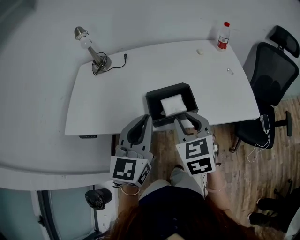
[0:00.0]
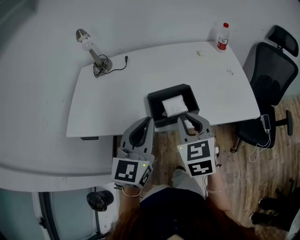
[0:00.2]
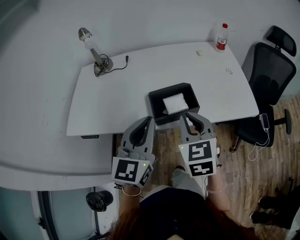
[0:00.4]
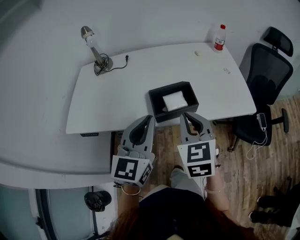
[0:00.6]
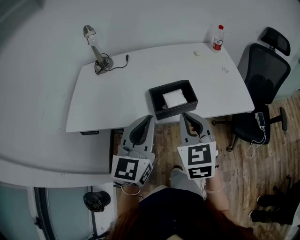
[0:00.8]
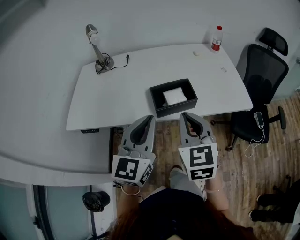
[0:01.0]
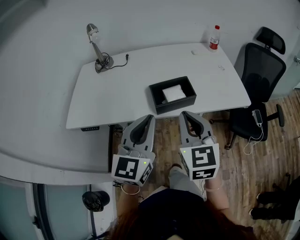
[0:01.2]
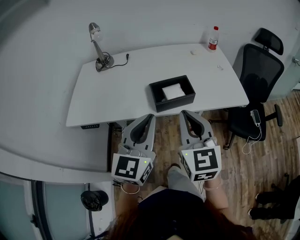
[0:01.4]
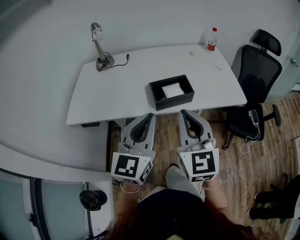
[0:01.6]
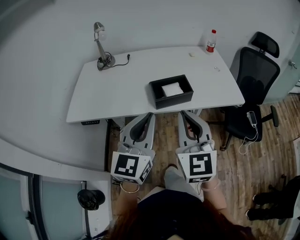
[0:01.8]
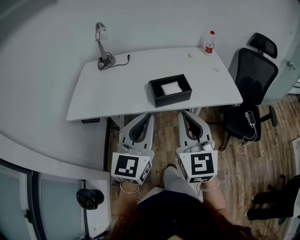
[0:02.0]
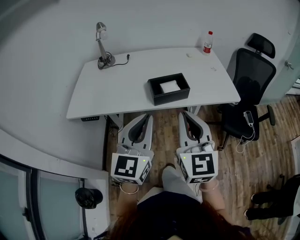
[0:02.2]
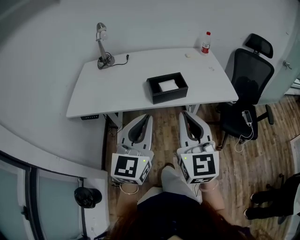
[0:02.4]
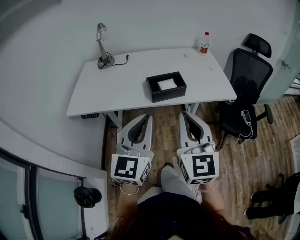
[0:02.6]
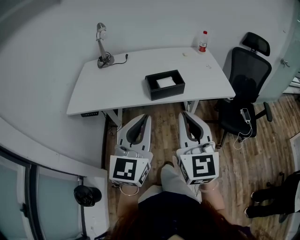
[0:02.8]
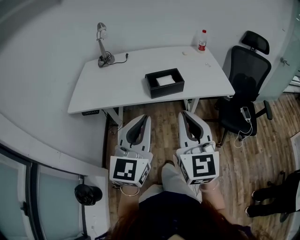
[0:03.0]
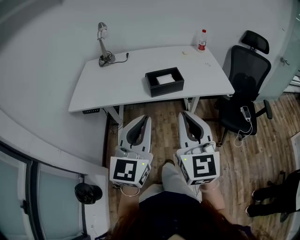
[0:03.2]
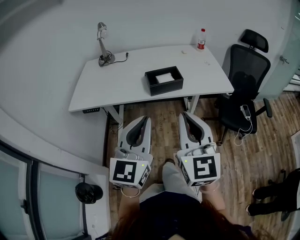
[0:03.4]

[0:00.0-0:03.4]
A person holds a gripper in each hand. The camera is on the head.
0:00.0 to 0:01.6: The right gripper goes roughly 15 cm backward and upward, and swivels some 30 degrees. The left gripper shifts about 10 cm backward.
0:01.6 to 0:03.4: Both grippers move backward, some 15 cm.

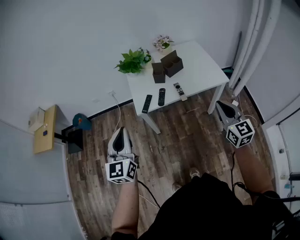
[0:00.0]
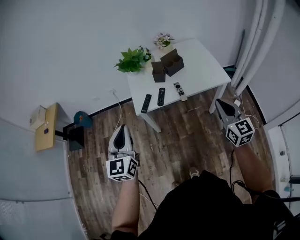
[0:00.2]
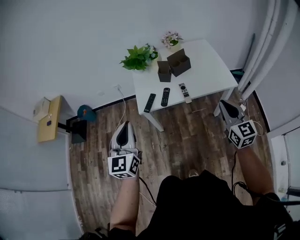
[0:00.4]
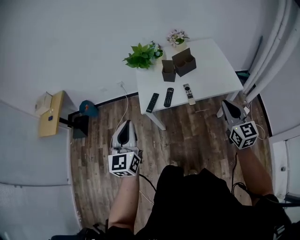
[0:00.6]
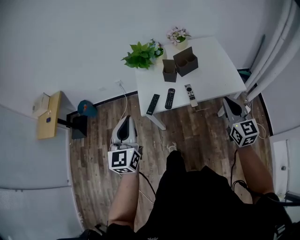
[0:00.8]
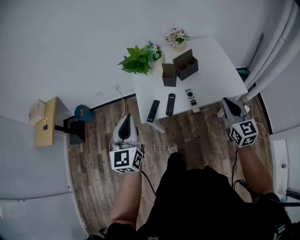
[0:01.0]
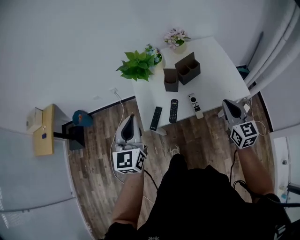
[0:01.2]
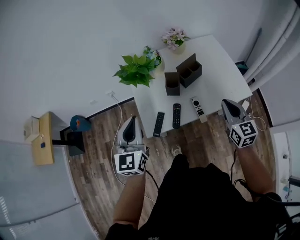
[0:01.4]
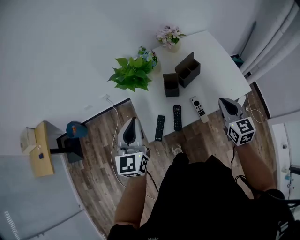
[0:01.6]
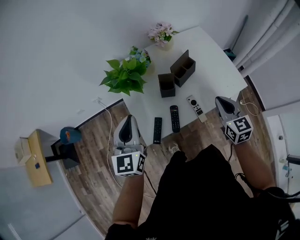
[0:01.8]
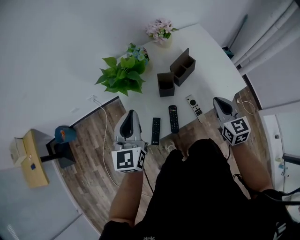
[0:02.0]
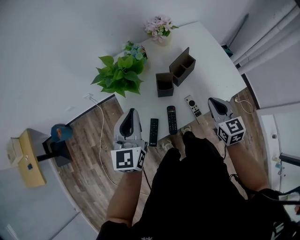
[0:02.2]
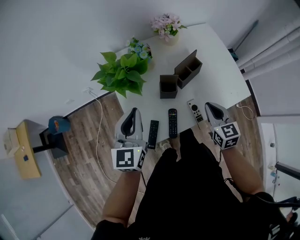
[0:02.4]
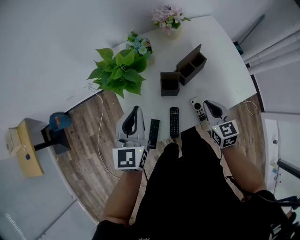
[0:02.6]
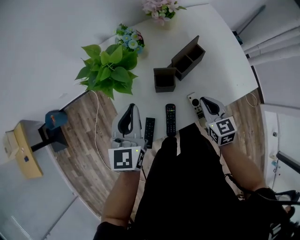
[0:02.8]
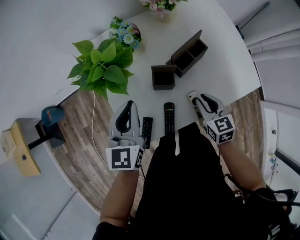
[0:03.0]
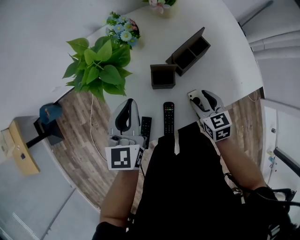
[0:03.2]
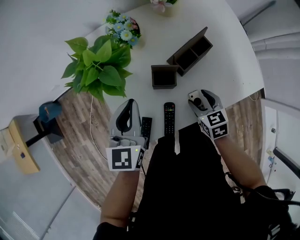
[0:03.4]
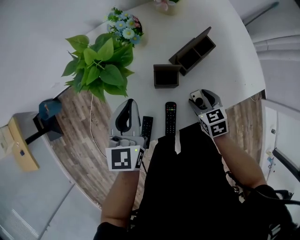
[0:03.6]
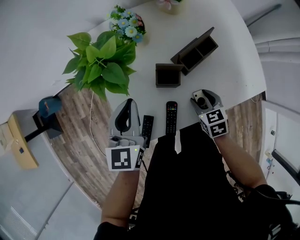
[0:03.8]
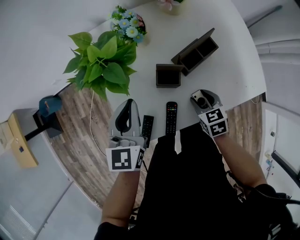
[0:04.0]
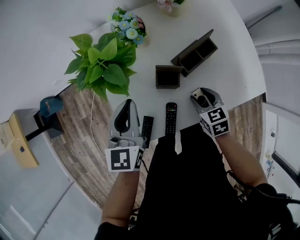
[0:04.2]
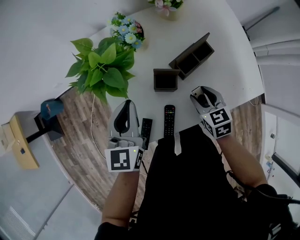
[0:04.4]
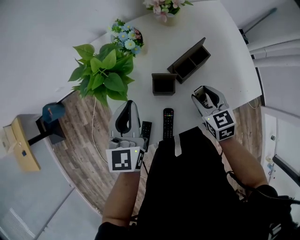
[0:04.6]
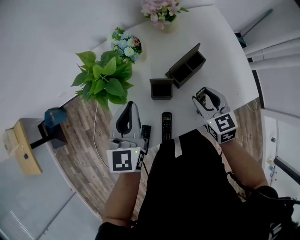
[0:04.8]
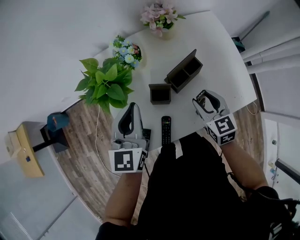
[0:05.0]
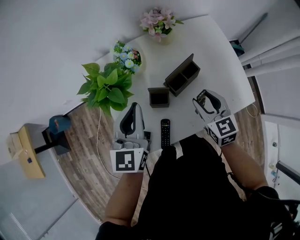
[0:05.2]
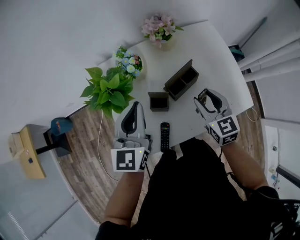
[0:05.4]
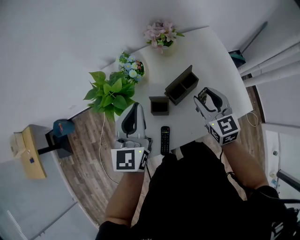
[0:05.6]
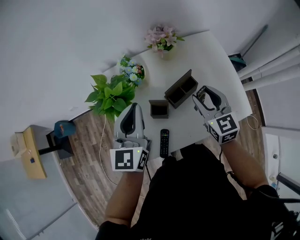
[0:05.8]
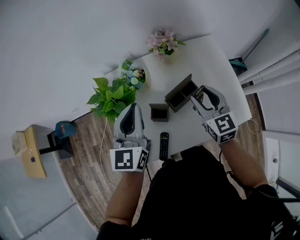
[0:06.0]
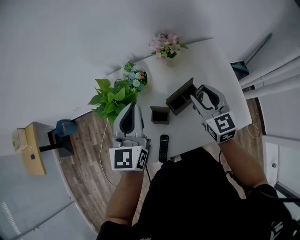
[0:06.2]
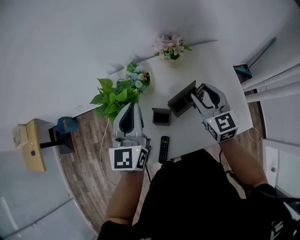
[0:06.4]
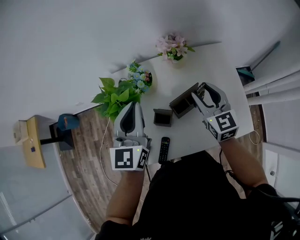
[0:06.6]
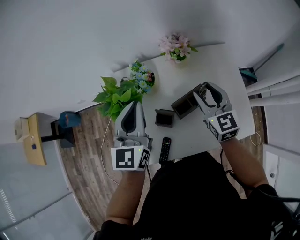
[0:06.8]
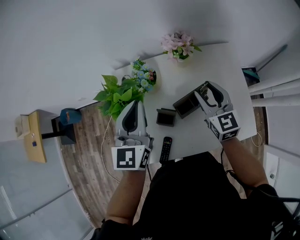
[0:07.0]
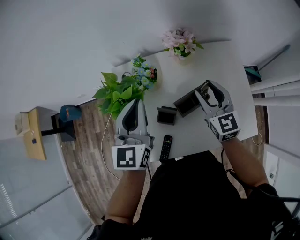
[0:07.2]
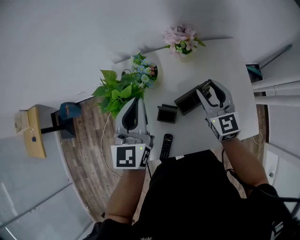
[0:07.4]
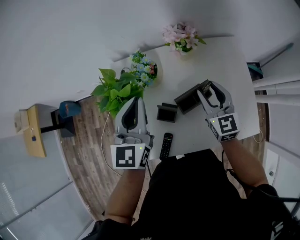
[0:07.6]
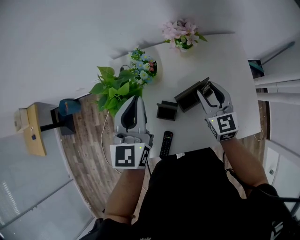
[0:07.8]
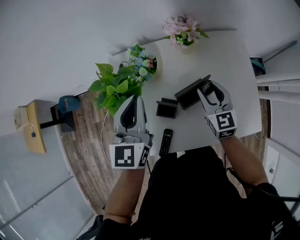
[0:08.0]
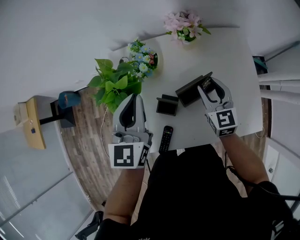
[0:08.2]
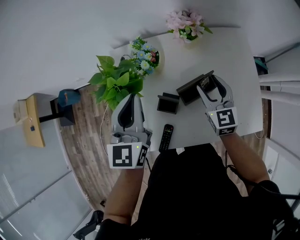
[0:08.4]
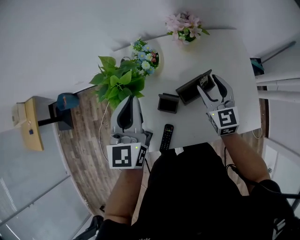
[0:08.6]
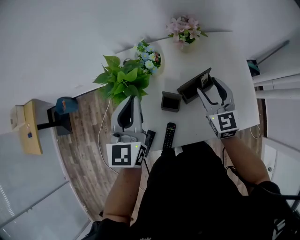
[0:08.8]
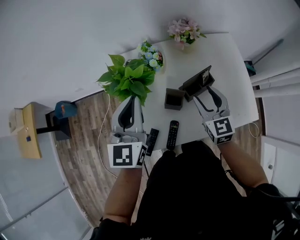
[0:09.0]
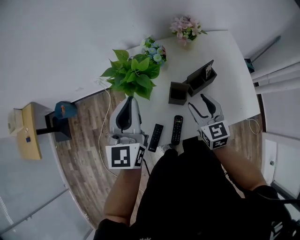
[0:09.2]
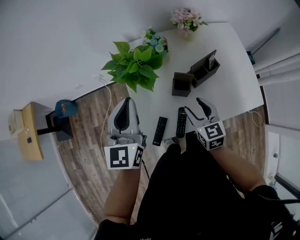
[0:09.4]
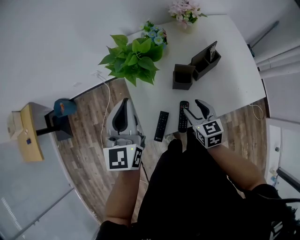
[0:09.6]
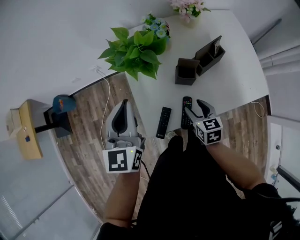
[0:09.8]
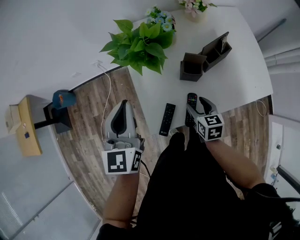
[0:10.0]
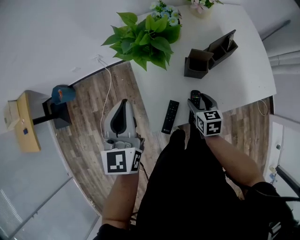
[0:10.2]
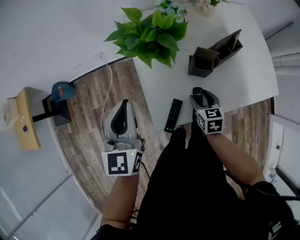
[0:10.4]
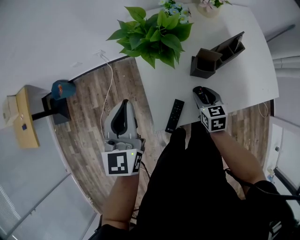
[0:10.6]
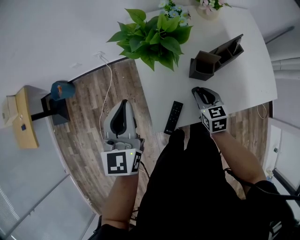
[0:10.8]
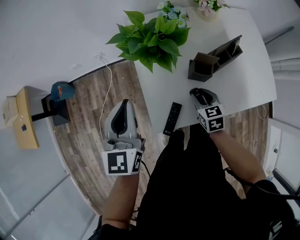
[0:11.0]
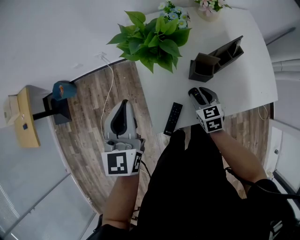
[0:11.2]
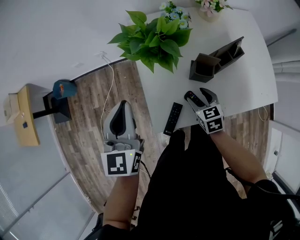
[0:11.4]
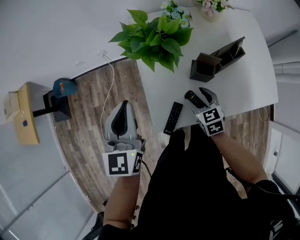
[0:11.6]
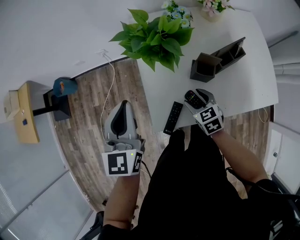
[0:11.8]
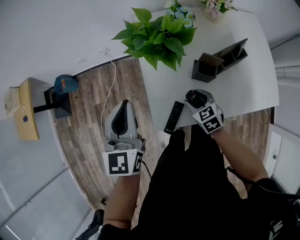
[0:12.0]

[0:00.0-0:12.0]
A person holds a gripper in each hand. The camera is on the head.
0:00.0 to 0:01.6: Both grippers move forward, about 30 cm.
0:01.6 to 0:03.0: The left gripper heads forward and downward, covering some 20 cm; the right gripper goes about 20 cm downward and forward, and swivels roughly 20 degrees.
0:03.0 to 0:04.4: The right gripper opens its fingers.
0:04.4 to 0:06.0: The left gripper travels upward, to the right and forward by approximately 15 cm; the right gripper goes about 20 cm upward and forward, and changes its angle by roughly 30 degrees.
0:06.0 to 0:07.6: The right gripper is displaced forward by approximately 5 cm.
0:07.6 to 0:09.0: The left gripper goes approximately 10 cm to the left and backward. Meanwhile the right gripper is displaced backward and to the left by some 10 cm.
0:09.0 to 0:10.4: The left gripper is displaced to the left, downward and backward by about 20 cm; the right gripper heads downward, to the left and backward, covering approximately 25 cm, and turns by about 30 degrees.
0:10.4 to 0:12.0: The right gripper turns by approximately 30 degrees, and closes, then reopens.

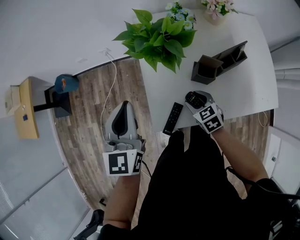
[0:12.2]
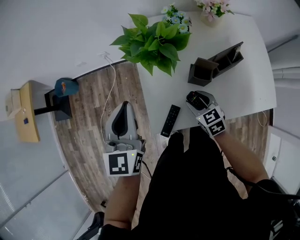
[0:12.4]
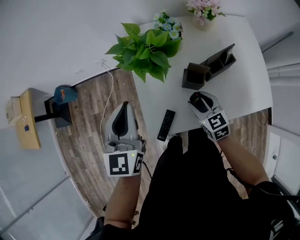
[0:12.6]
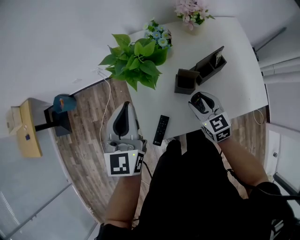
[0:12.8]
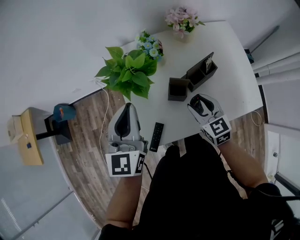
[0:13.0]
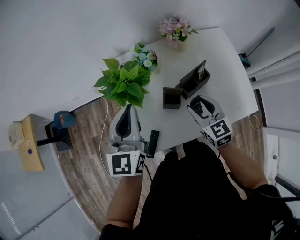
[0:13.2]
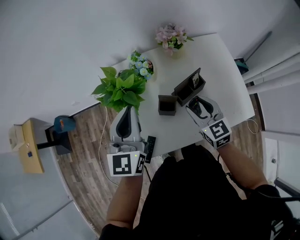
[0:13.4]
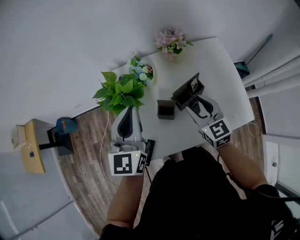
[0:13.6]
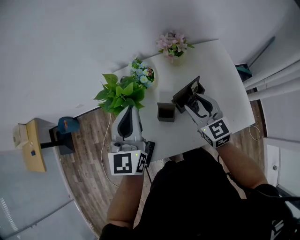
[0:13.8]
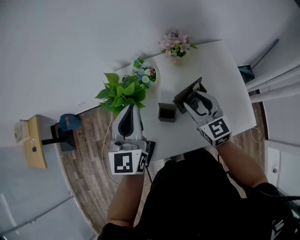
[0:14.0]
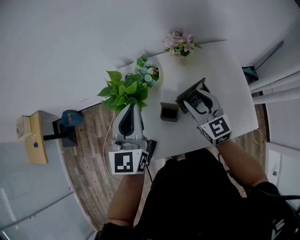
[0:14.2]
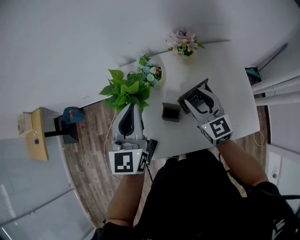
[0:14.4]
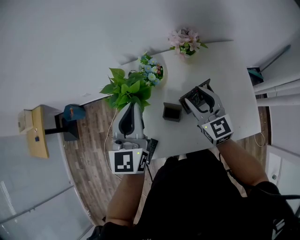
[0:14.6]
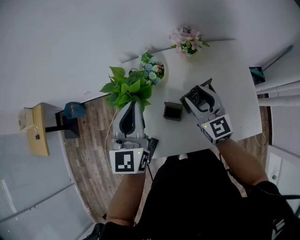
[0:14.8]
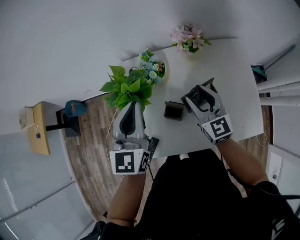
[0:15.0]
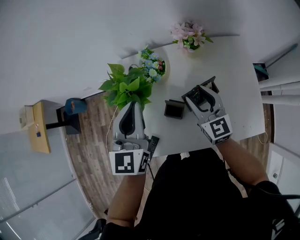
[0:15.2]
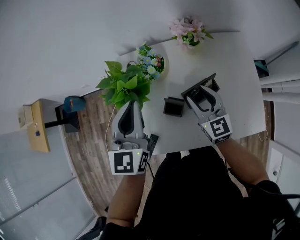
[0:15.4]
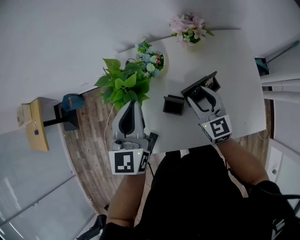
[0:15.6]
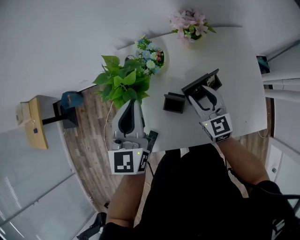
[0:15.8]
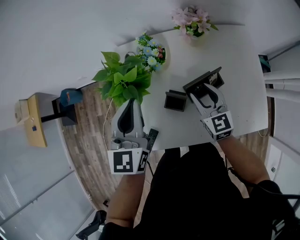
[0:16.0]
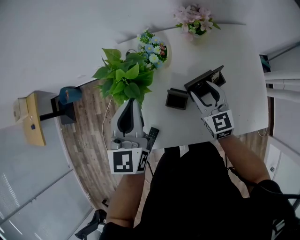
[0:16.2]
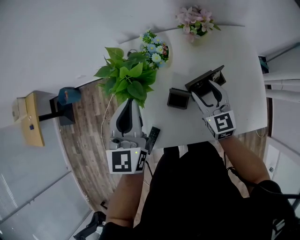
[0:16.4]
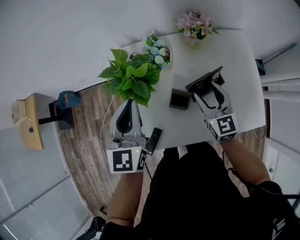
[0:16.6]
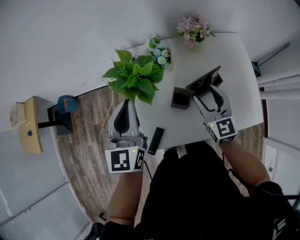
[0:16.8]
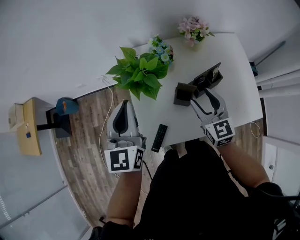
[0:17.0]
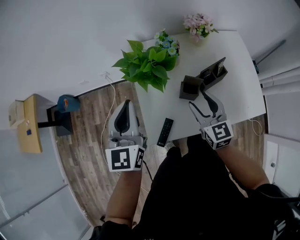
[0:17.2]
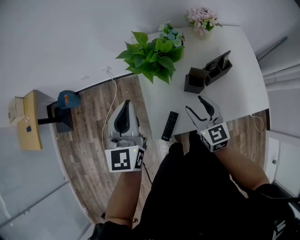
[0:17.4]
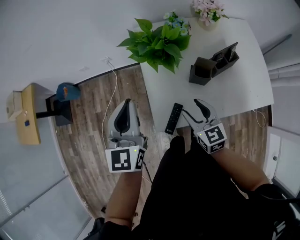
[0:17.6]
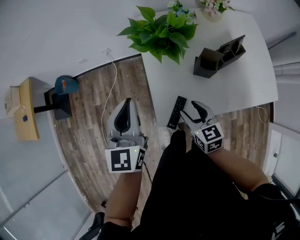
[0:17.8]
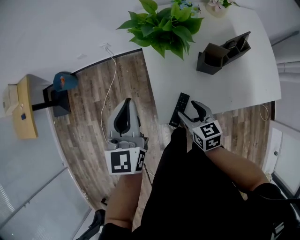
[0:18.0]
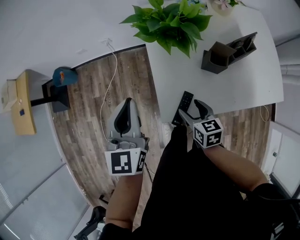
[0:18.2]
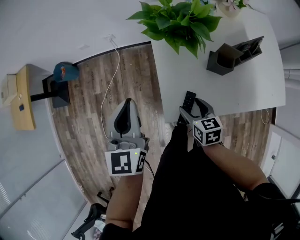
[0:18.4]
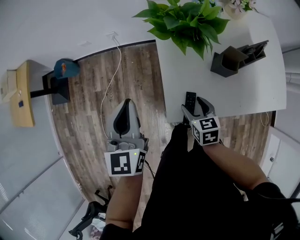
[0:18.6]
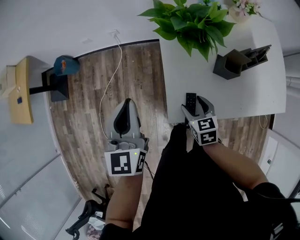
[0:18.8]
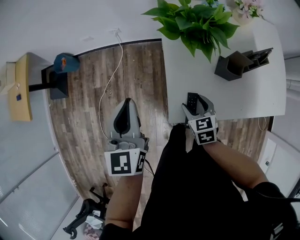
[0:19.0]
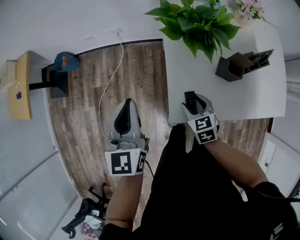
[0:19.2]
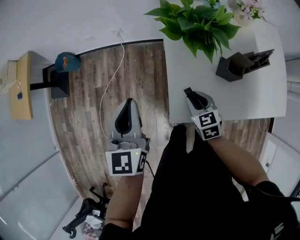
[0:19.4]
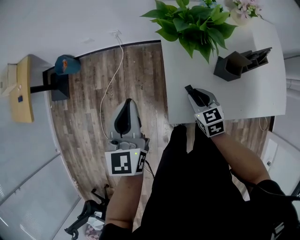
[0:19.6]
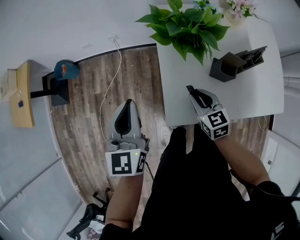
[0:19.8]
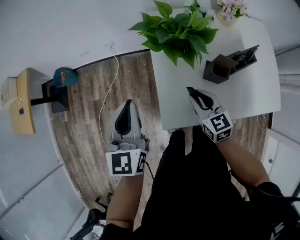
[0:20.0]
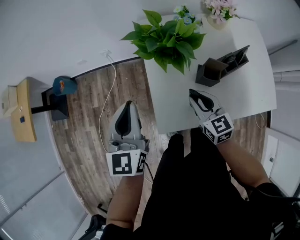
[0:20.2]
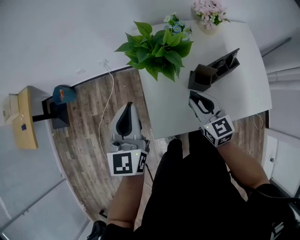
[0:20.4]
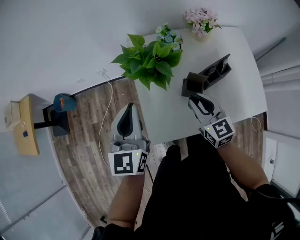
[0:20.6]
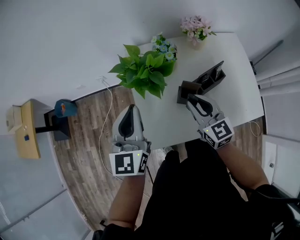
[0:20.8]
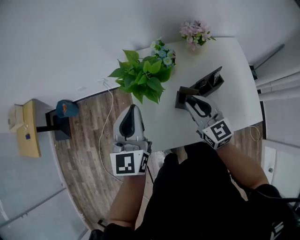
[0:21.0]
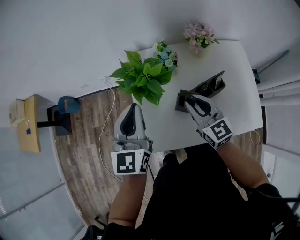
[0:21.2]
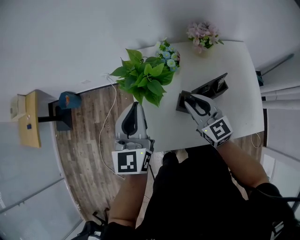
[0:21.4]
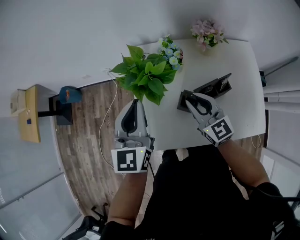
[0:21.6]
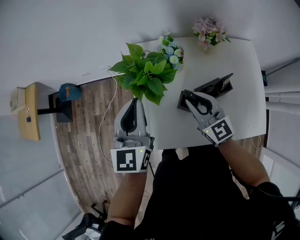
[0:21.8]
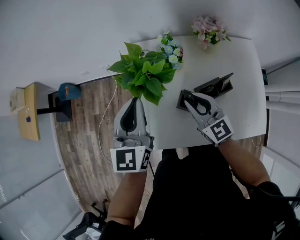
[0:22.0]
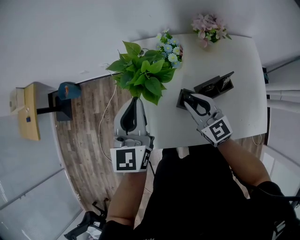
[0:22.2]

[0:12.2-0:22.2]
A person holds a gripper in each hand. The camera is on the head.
0:12.2 to 0:13.6: The left gripper shifts some 20 cm to the right and upward. The right gripper travels upward and to the right by approximately 30 cm, and rotates roughly 30 degrees.
0:13.6 to 0:15.0: The right gripper moves forward, approximately 5 cm.
0:15.0 to 0:16.4: Both grippers move downward, about 5 cm.
0:16.4 to 0:18.0: The left gripper moves to the left and backward, roughly 20 cm. Meanwhile the right gripper travels to the left, backward and downward by approximately 35 cm, and swivels roughly 30 degrees.
0:18.0 to 0:19.4: The left gripper heads to the left, covering roughly 5 cm; the right gripper goes approximately 5 cm forward, and closes up.
0:19.4 to 0:20.8: The right gripper travels upward and to the right by approximately 25 cm, and rotates about 30 degrees. The left gripper moves to the right and upward, some 20 cm.
0:20.8 to 0:22.2: The left gripper is displaced to the right by about 5 cm. The right gripper ends up some 5 cm from where it was.
